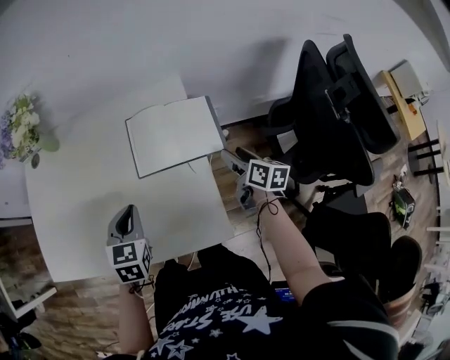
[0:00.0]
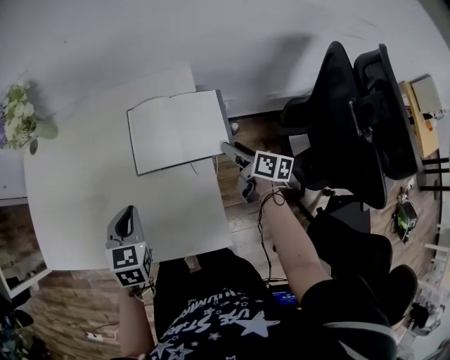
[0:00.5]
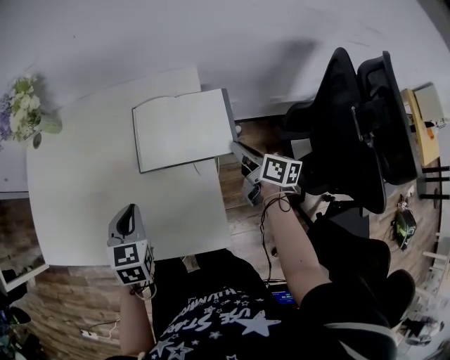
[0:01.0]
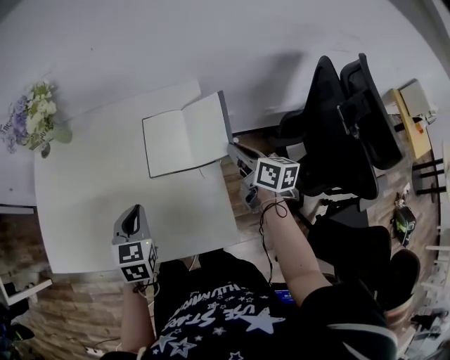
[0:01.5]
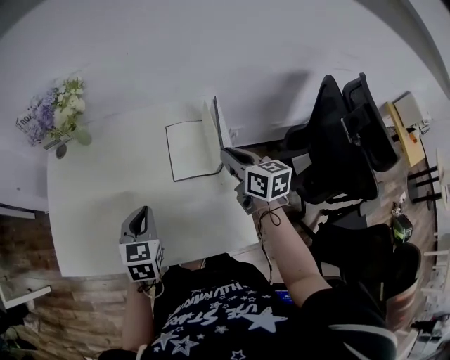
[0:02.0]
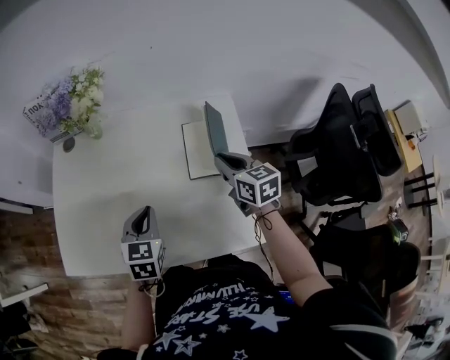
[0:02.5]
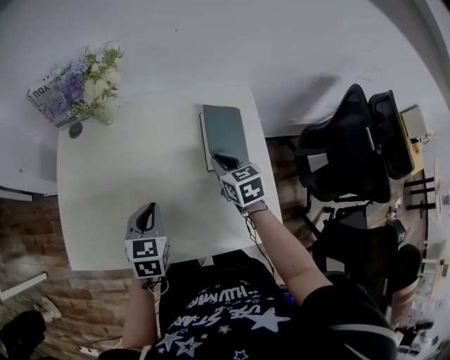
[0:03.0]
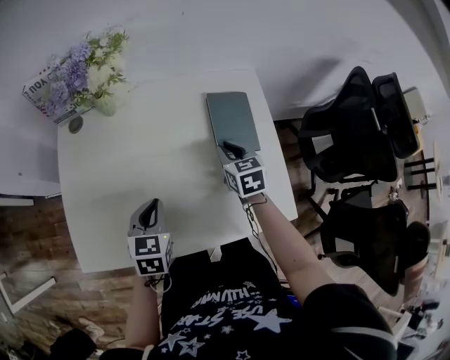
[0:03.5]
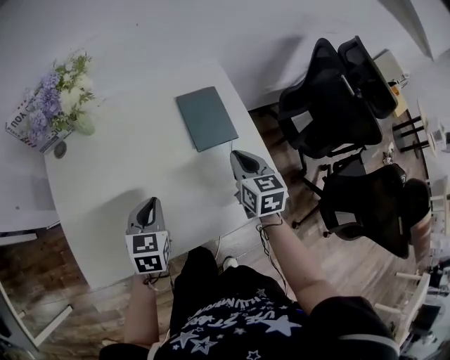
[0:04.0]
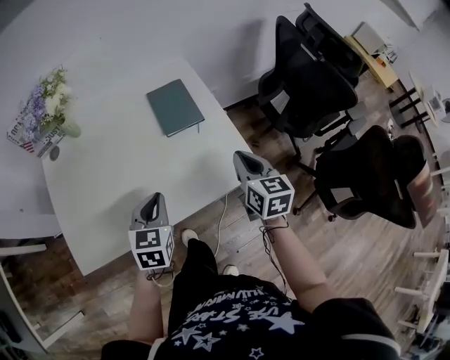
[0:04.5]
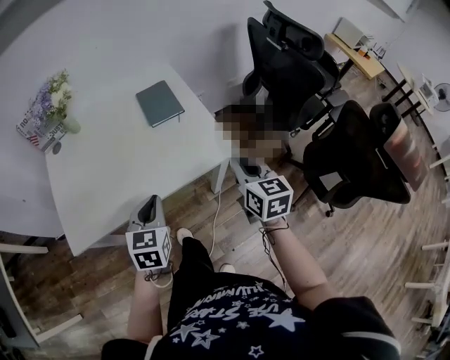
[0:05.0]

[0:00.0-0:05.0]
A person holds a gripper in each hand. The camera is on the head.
0:00.0 to 0:02.5: The left gripper goes approximately 15 cm to the left. Meanwhile the right gripper is displaced to the left and upward by approximately 25 cm, swivels about 30 degrees, and closes up.
0:02.5 to 0:05.0: The right gripper reaches some 10 cm downward, then returns, and turns by roughly 30 degrees; the left gripper moves approximately 25 cm, and changes its angle by roughly 20 degrees.

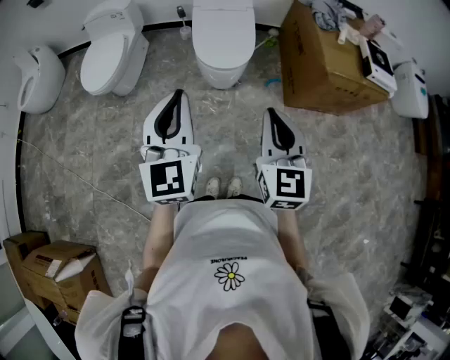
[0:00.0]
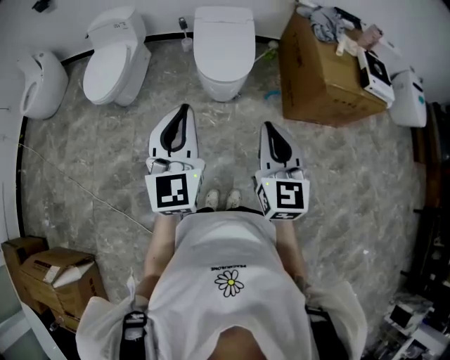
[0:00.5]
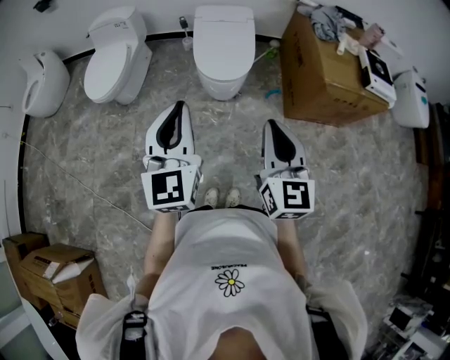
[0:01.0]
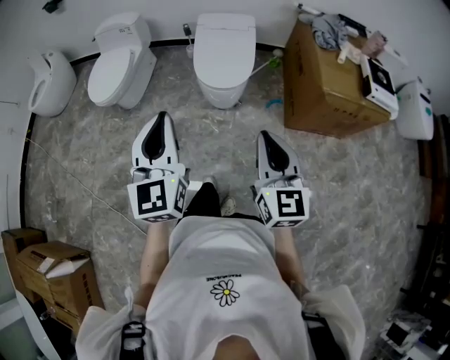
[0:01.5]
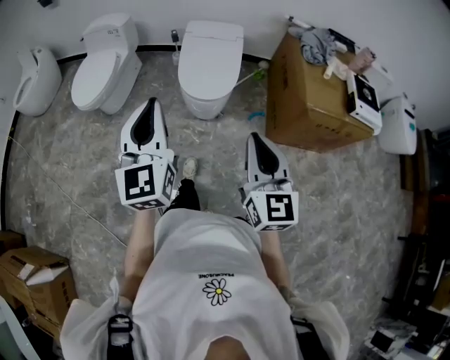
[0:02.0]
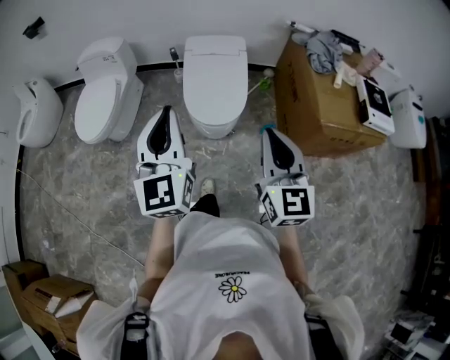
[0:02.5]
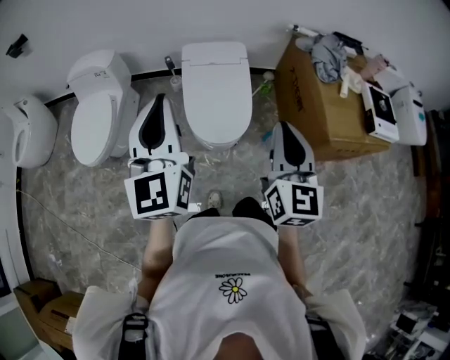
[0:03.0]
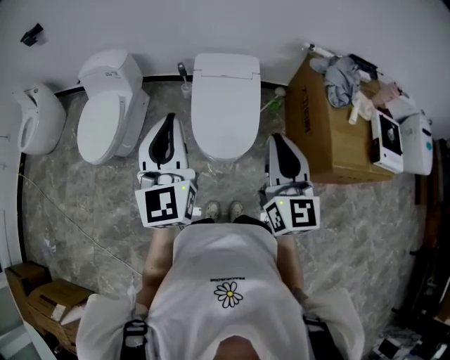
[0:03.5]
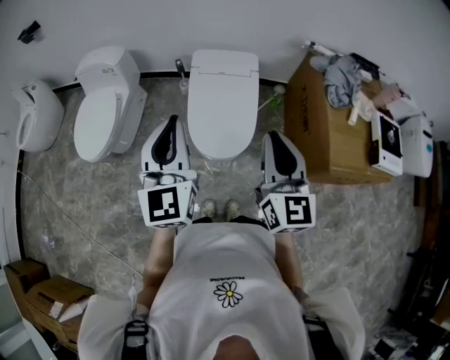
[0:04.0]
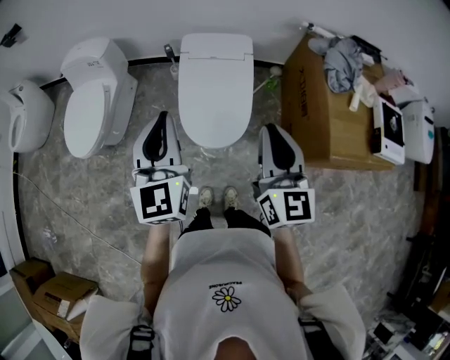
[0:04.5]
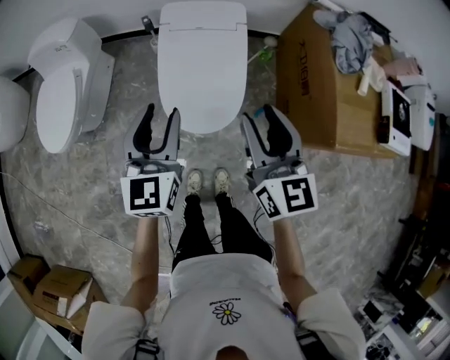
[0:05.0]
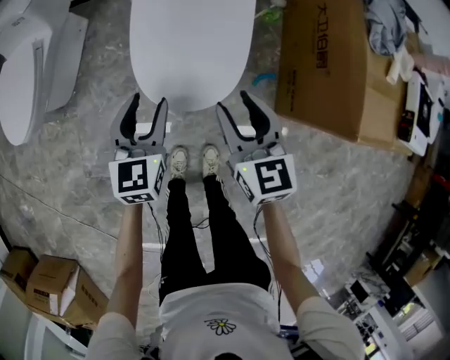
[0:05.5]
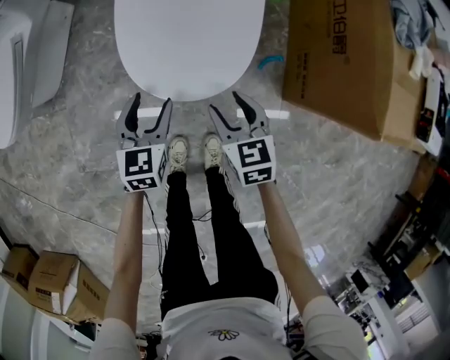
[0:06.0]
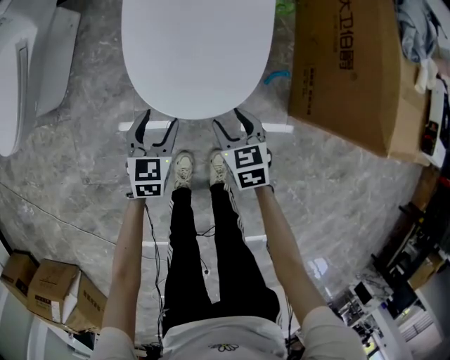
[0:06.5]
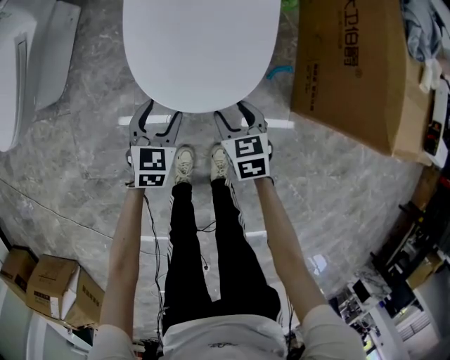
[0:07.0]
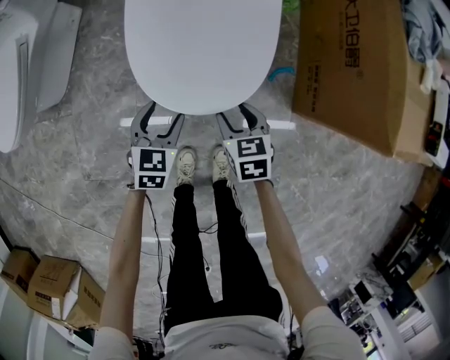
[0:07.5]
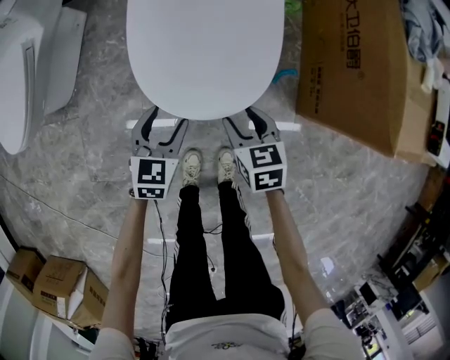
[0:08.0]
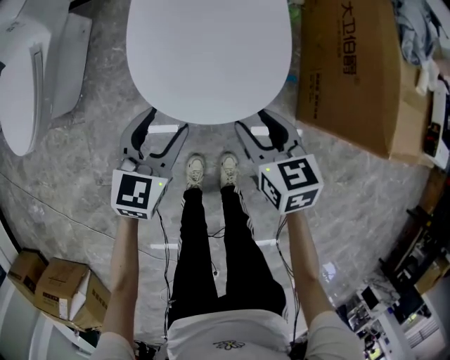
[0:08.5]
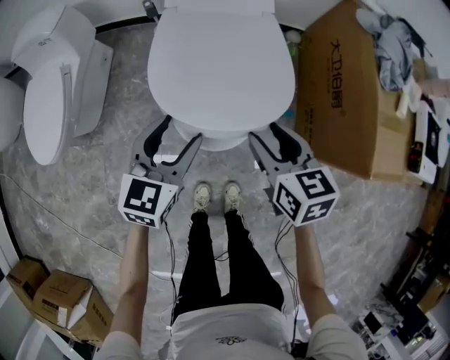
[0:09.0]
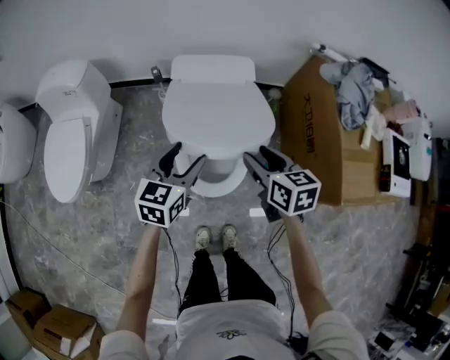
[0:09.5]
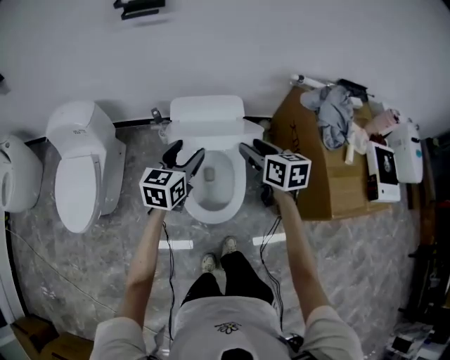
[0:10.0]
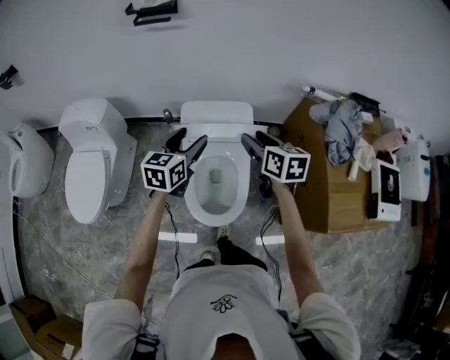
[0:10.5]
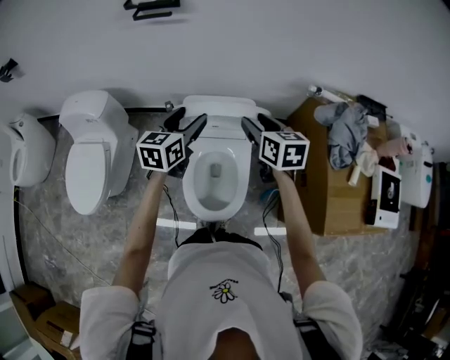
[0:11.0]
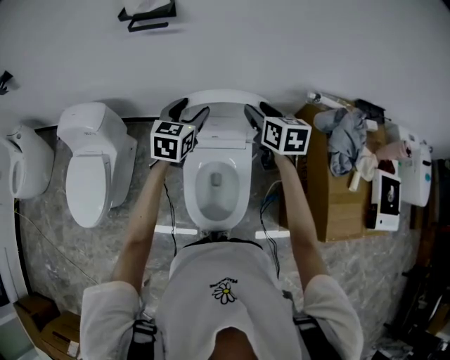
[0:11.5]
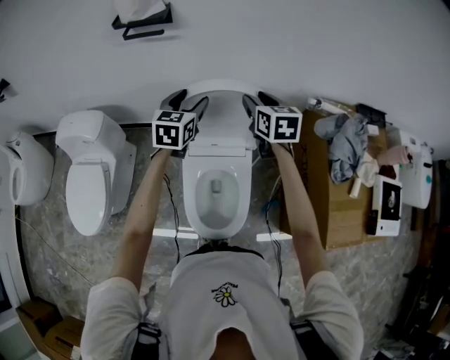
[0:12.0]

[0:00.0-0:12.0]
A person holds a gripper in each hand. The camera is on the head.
0:00.0 to 0:02.0: The right gripper is displaced to the right by roughly 5 cm. The left gripper is displaced forward by some 5 cm.
0:02.0 to 0:04.0: Both grippers move forward, about 30 cm.
0:04.0 to 0:06.0: Both grippers move downward, some 60 cm. The left gripper tilts its fingers approximately 40 degrees downward, and opens its fingers; the right gripper tilts its fingers about 40 degrees downward, and opens.
0:08.0 to 0:10.0: The grippers both shift upward and forward by approximately 40 cm. The right gripper changes its angle by about 20 degrees. The left gripper turns by approximately 20 degrees.
0:10.0 to 0:12.0: Both grippers move forward, about 30 cm.

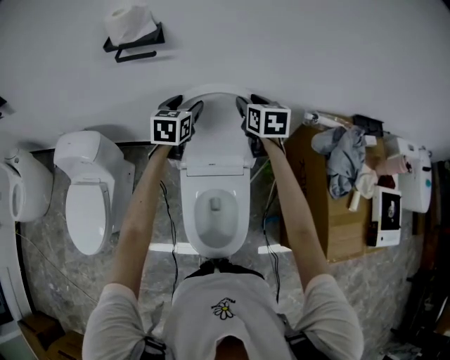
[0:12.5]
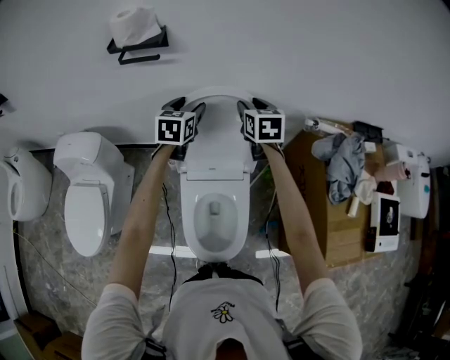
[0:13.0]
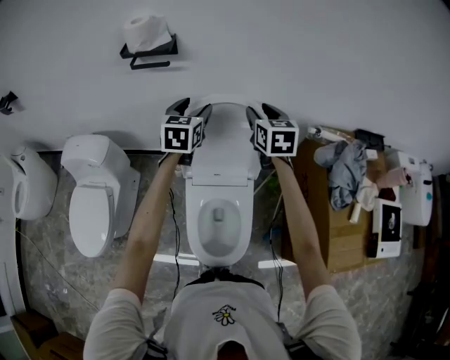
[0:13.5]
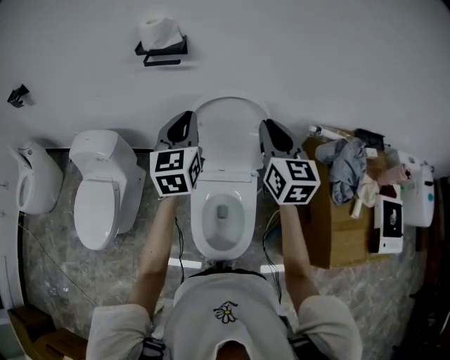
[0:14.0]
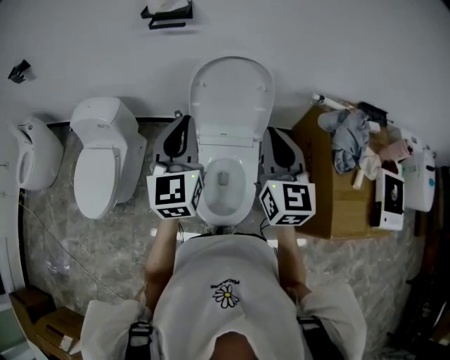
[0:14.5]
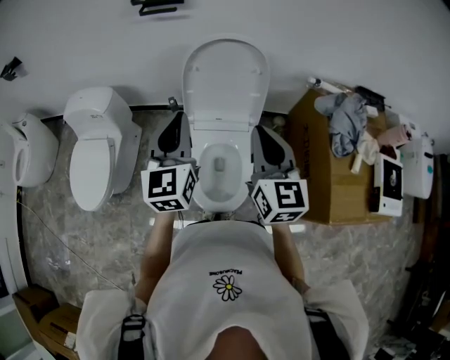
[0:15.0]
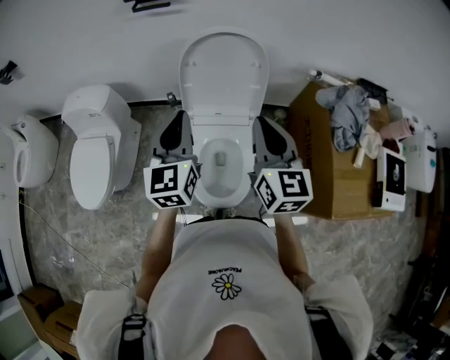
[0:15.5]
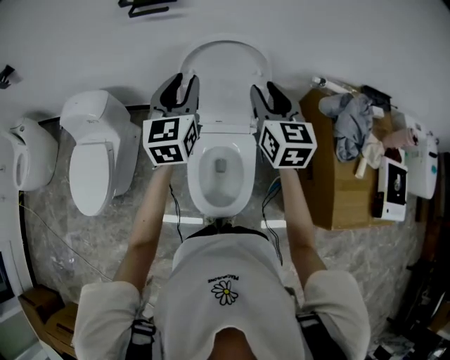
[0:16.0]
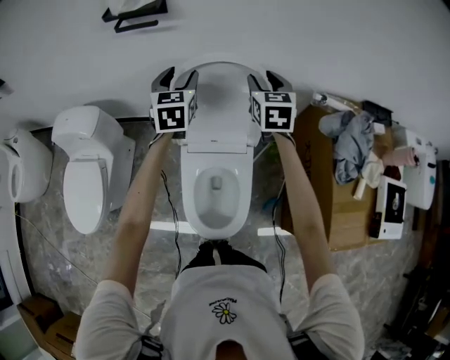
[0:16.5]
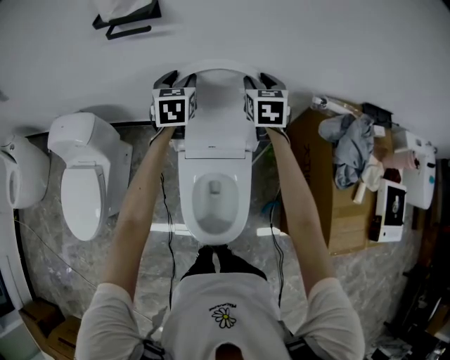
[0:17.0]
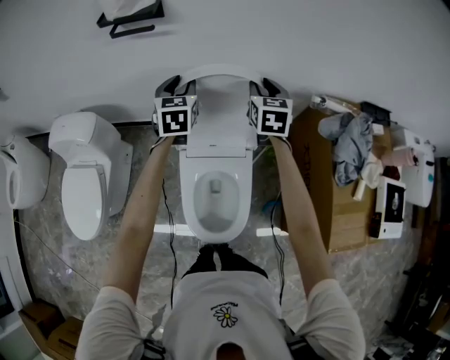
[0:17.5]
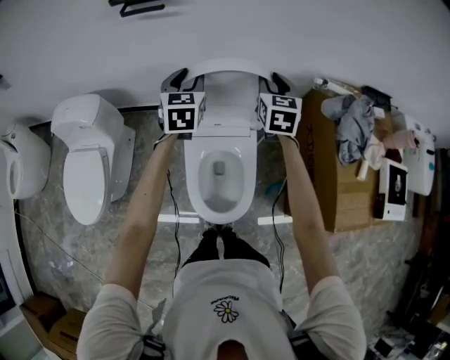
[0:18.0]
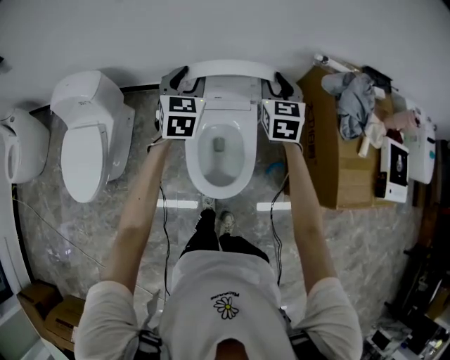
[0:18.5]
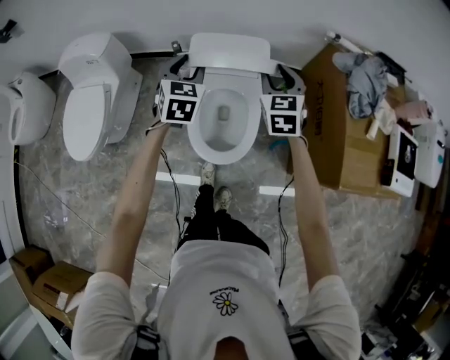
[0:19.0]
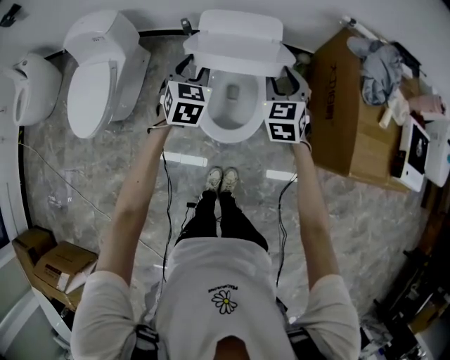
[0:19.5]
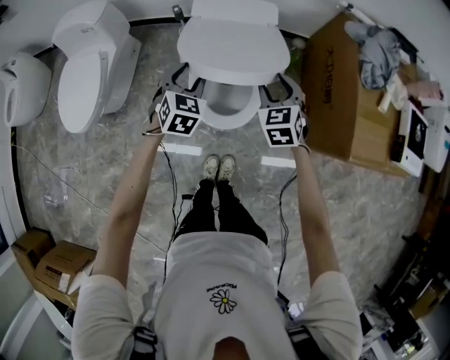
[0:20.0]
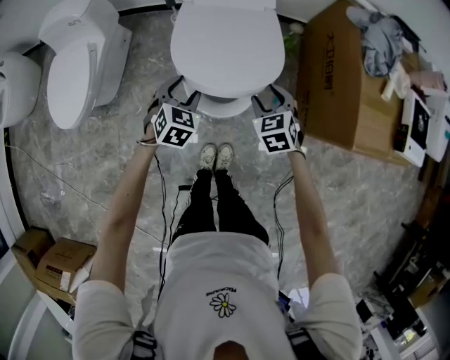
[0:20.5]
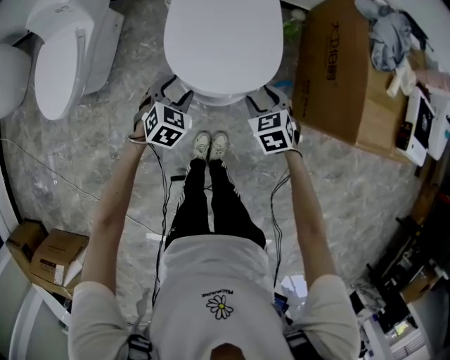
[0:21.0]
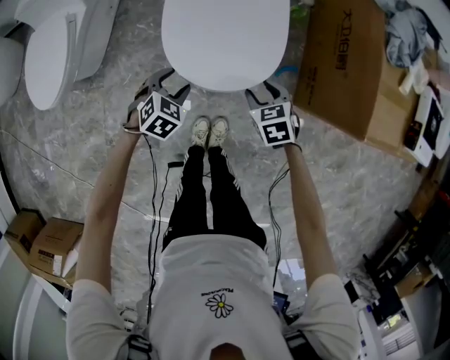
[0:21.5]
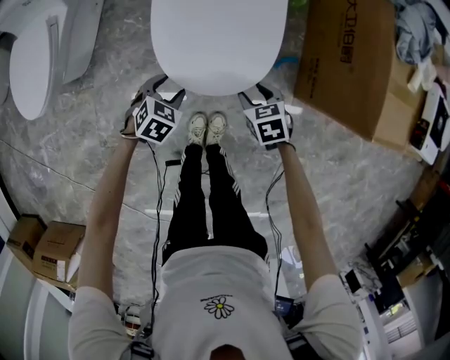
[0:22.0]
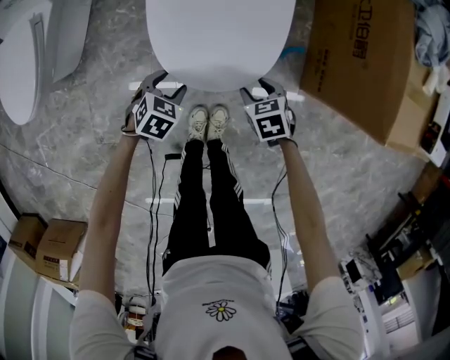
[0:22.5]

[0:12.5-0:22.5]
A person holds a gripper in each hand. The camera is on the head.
0:12.5 to 0:14.5: Both grippers travel together backward and upward, some 35 cm. The left gripper changes its angle by about 30 degrees, and closes its fingers, while the right gripper rotates about 30 degrees, and closes.
0:14.5 to 0:16.5: The grippers both shift forward and downward by some 30 cm. The left gripper opens up. The right gripper rotates some 20 degrees, and opens its fingers.
0:16.5 to 0:18.5: Both grippers move backward, some 15 cm.
0:18.5 to 0:20.5: Both grippers move backward and downward, approximately 35 cm. The right gripper rotates approximately 30 degrees. The left gripper swivels about 30 degrees.
0:20.5 to 0:22.5: Both grippers travel together downward, roughly 25 cm. The right gripper rotates some 30 degrees, while the left gripper turns by about 20 degrees.
